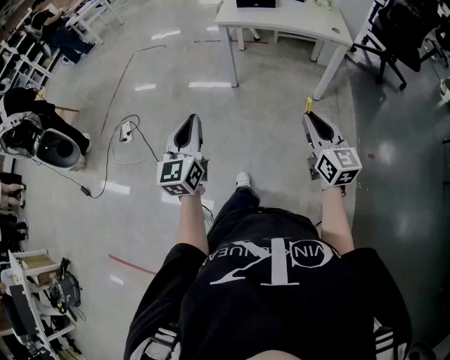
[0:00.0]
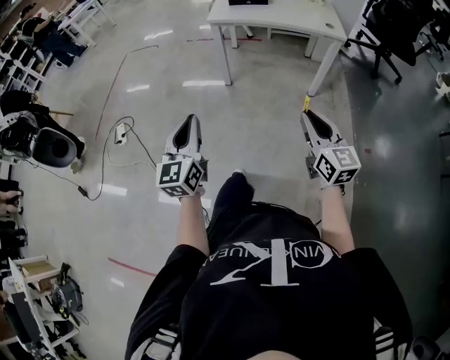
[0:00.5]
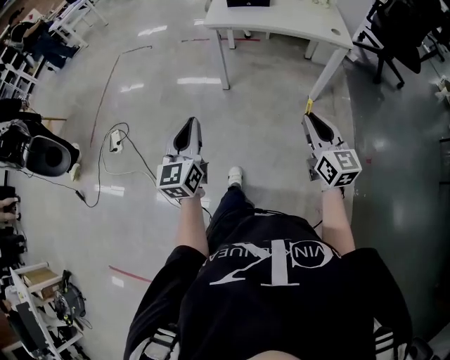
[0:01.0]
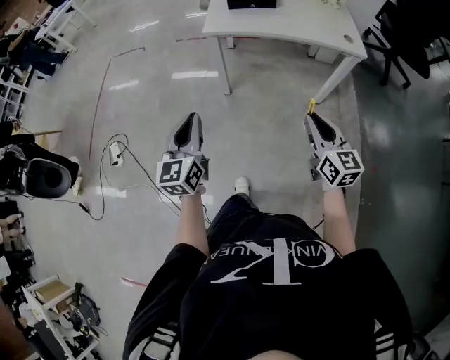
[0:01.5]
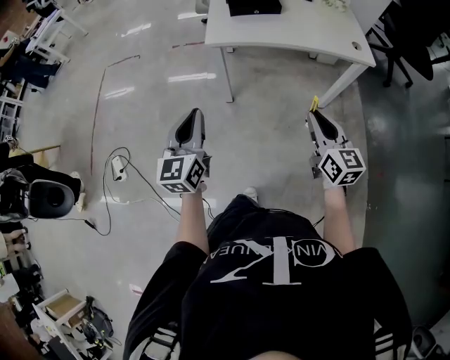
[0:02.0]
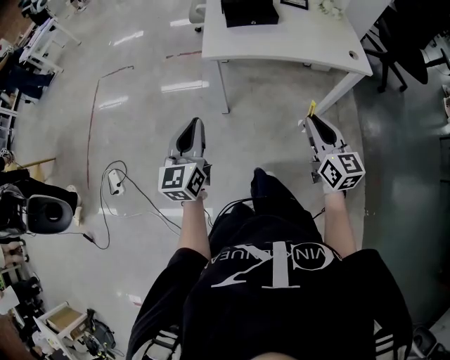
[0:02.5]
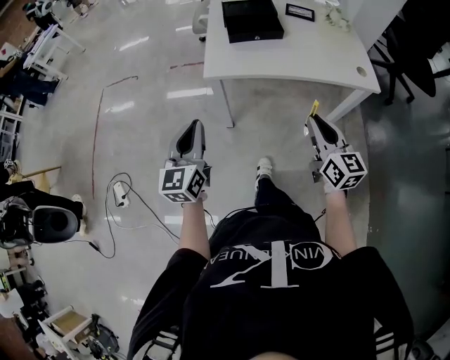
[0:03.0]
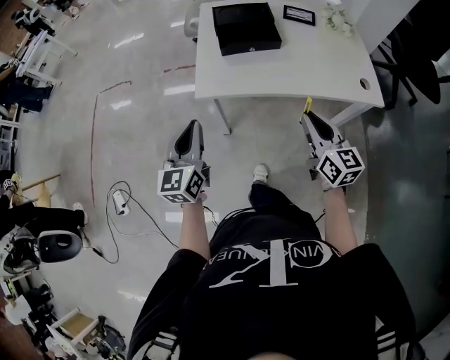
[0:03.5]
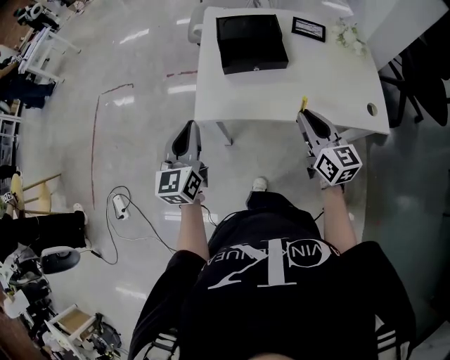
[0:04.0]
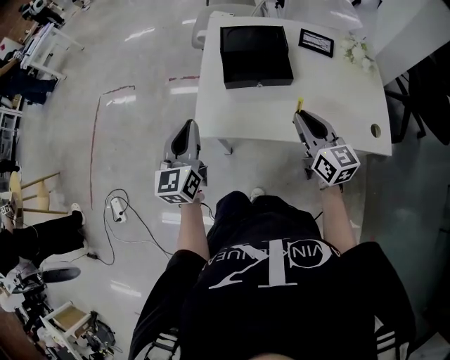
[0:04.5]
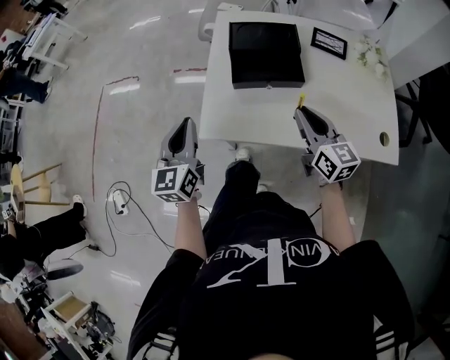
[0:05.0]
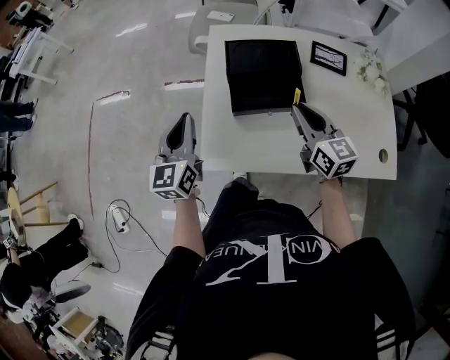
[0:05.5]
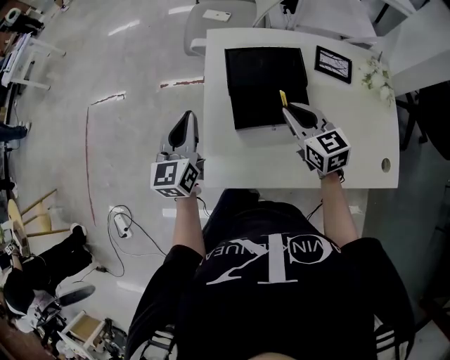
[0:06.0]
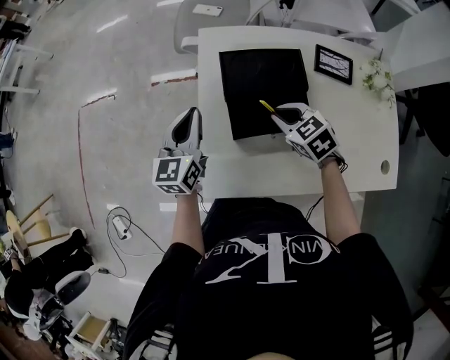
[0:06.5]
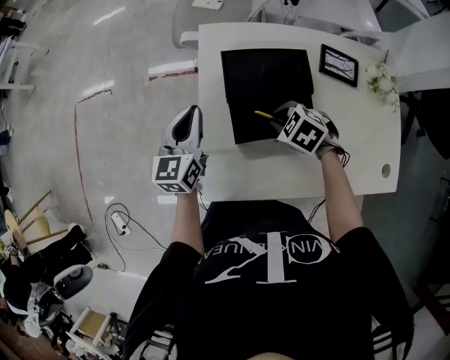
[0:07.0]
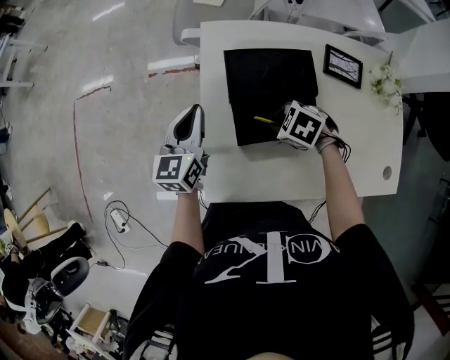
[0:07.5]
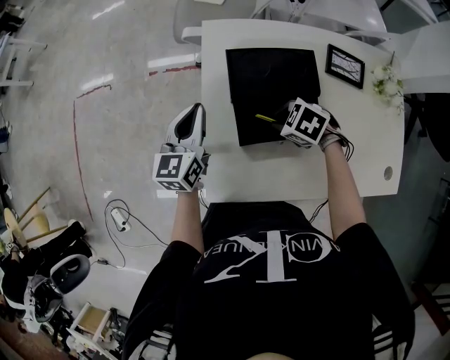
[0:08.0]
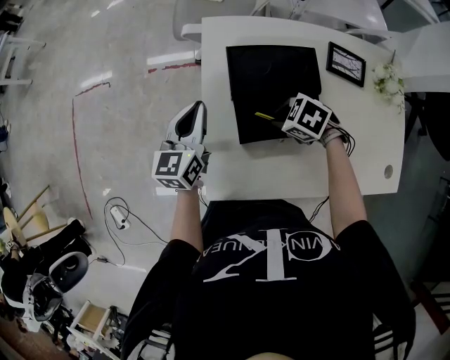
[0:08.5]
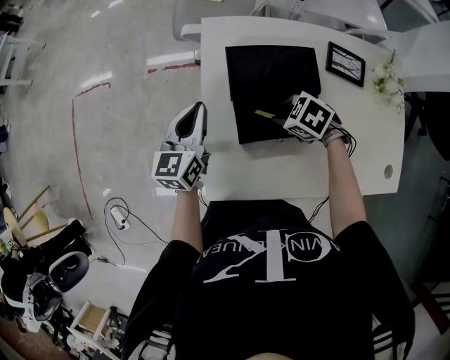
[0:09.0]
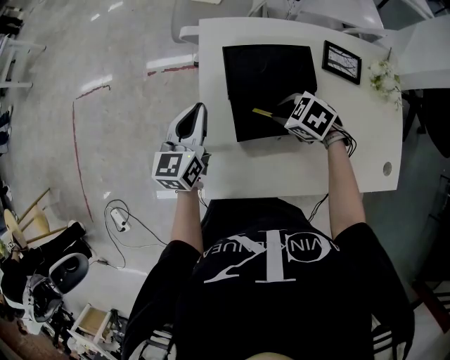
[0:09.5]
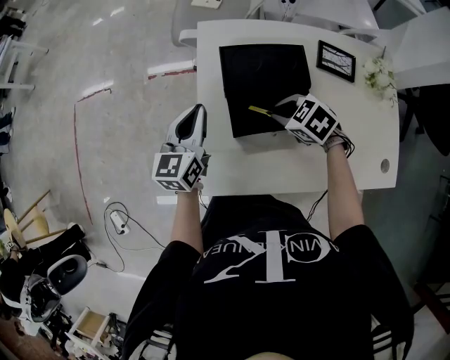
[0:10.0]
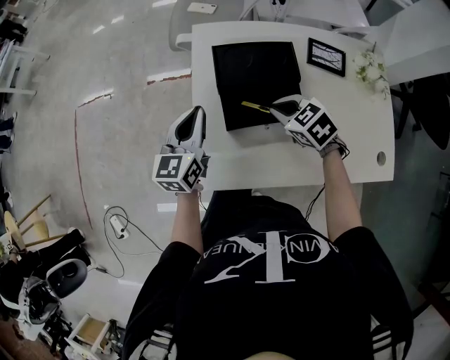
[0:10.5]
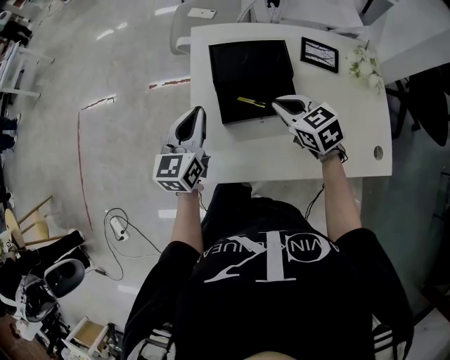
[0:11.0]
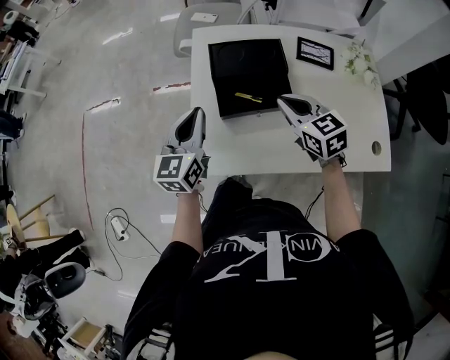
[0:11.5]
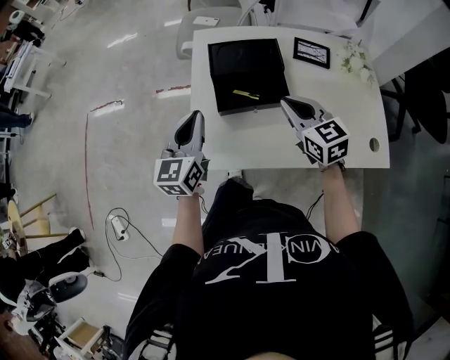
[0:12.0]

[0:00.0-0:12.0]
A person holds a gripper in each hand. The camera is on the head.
0:00.0 to 0:02.0: Both grippers move forward, some 35 cm.
0:02.0 to 0:04.0: The two grippers go some 35 cm forward.
0:04.0 to 0:06.0: Both grippers travel together forward, roughly 25 cm. The right gripper changes its angle by some 20 degrees.
0:06.0 to 0:08.0: The left gripper changes place by about 10 cm; the right gripper is displaced downward by roughly 10 cm, and angles its fingers downward, by some 40 degrees.
0:08.0 to 0:10.0: The grippers move only a little.
0:10.0 to 0:12.0: The right gripper shifts some 15 cm upward, backward and to the right, and points its fingers approximately 40 degrees further upward. The left gripper travels backward and upward by some 15 cm.

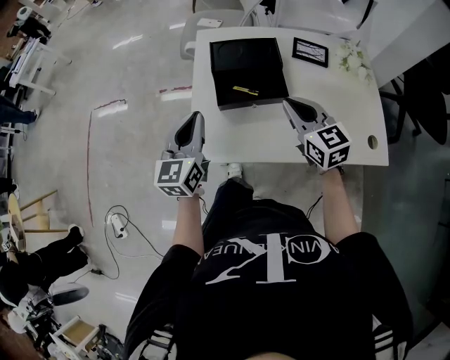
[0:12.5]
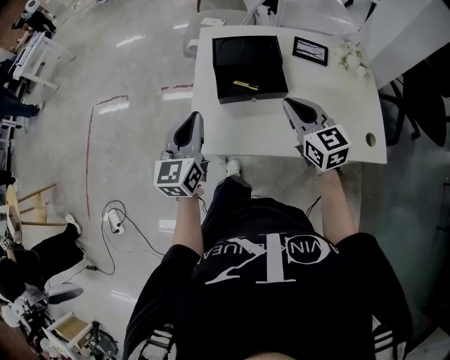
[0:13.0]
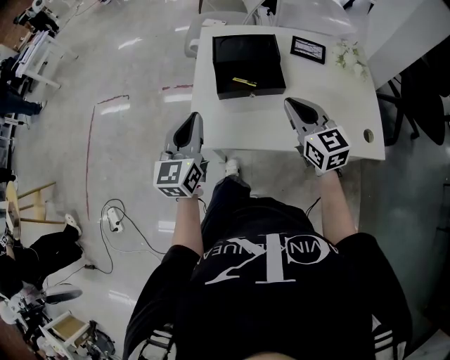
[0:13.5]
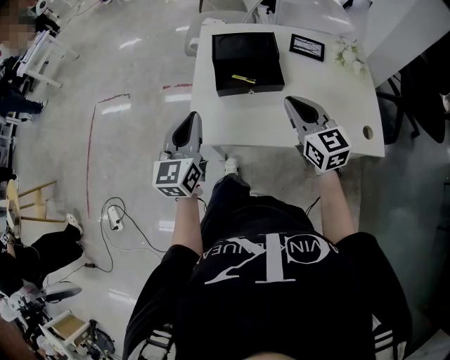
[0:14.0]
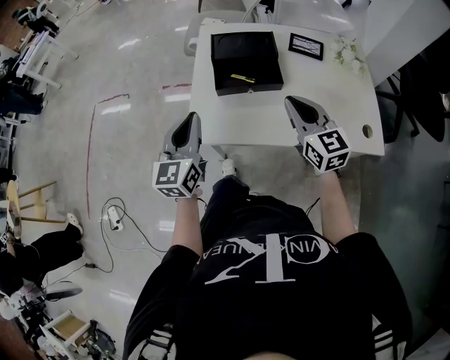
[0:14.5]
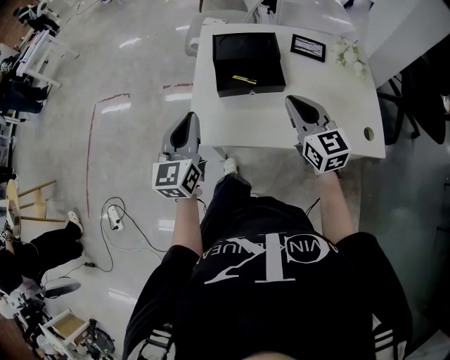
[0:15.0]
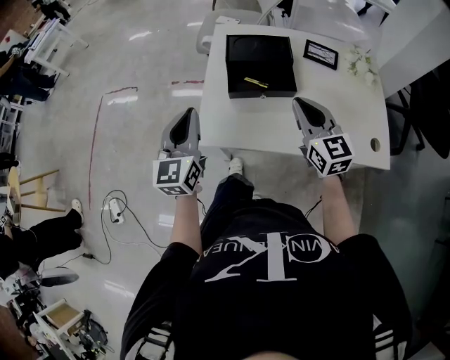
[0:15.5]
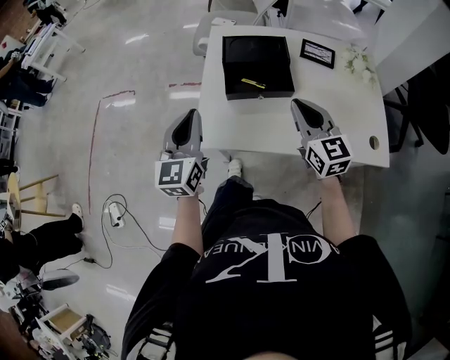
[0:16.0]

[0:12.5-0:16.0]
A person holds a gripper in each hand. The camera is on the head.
0:12.5 to 0:14.5: Both grippers move backward, roughly 5 cm.
0:14.5 to 0:16.0: There are only small adjustments of the grippers.

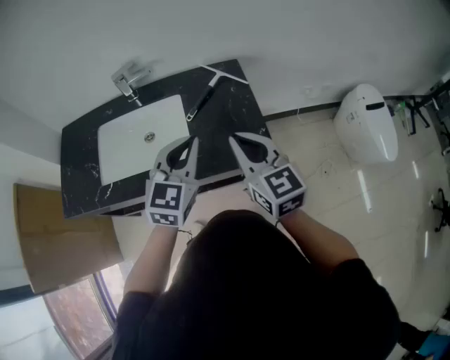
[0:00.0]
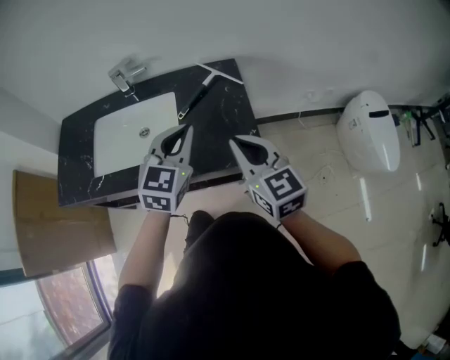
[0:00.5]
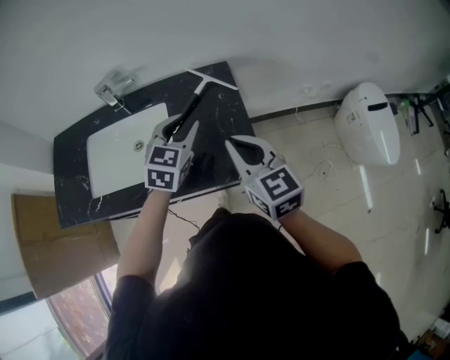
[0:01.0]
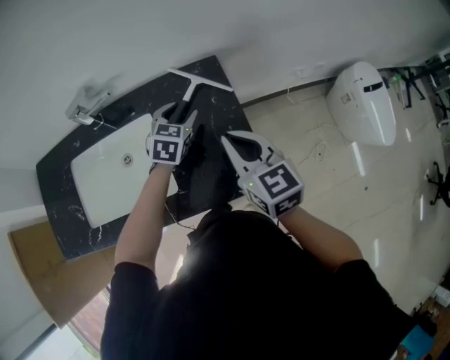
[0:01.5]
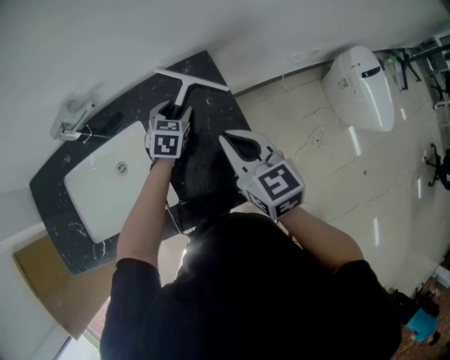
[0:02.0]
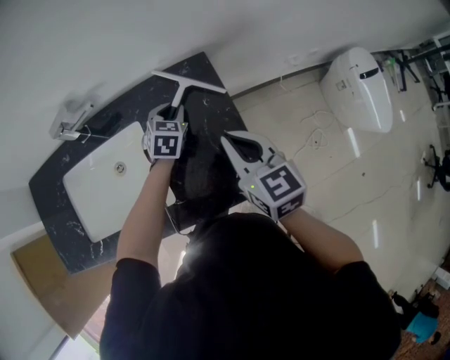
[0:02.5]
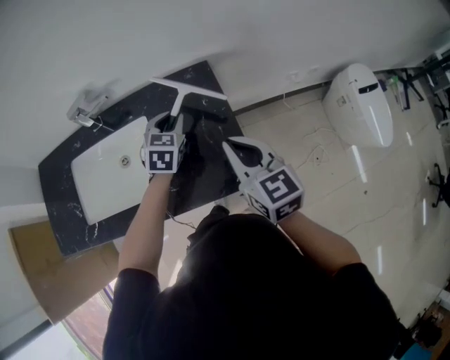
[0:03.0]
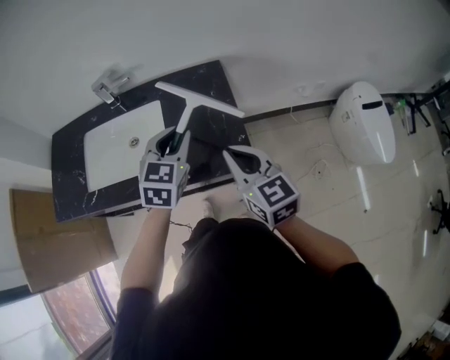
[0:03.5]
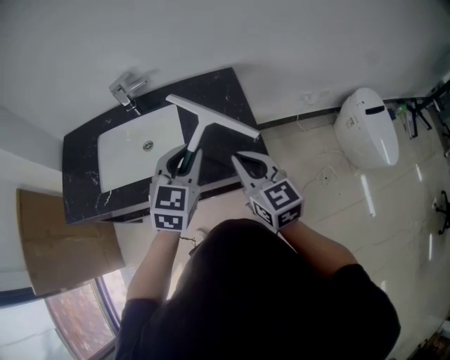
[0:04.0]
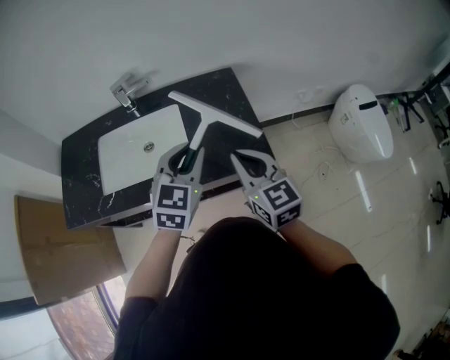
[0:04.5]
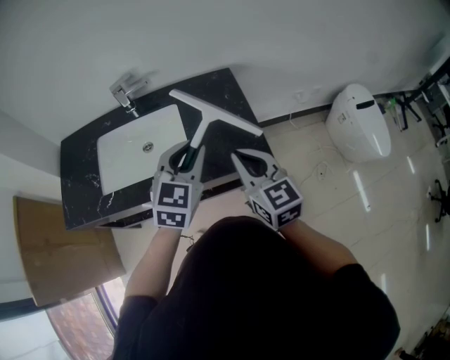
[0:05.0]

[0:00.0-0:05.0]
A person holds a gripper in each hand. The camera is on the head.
0:00.0 to 0:02.5: The right gripper travels forward and downward by some 20 cm, while the left gripper travels forward and downward by approximately 40 cm, changes its angle by some 30 degrees, and opens up.
0:02.5 to 0:05.0: The left gripper heads backward and upward, covering about 40 cm, and changes its angle by roughly 20 degrees, while the right gripper moves backward, about 20 cm.

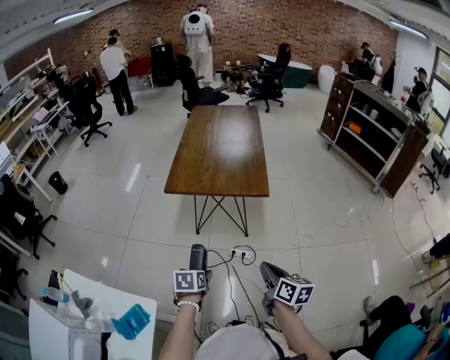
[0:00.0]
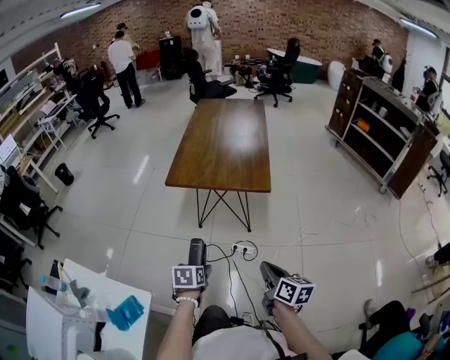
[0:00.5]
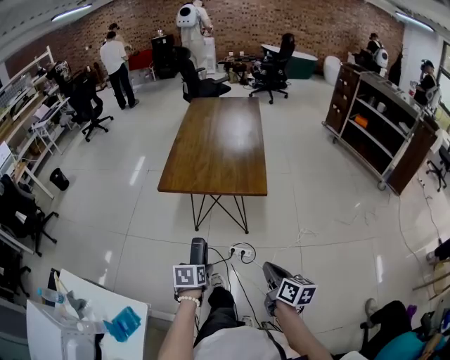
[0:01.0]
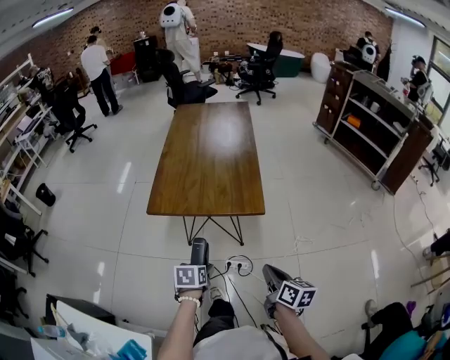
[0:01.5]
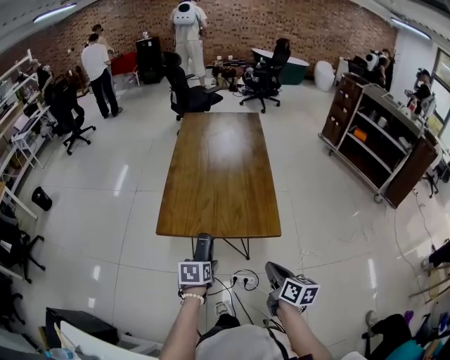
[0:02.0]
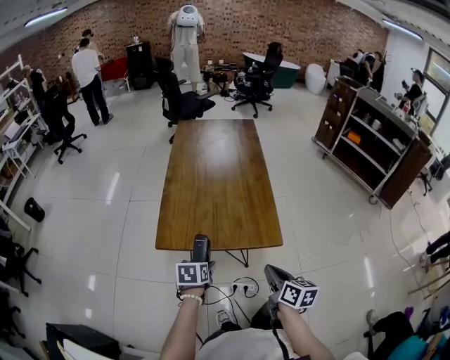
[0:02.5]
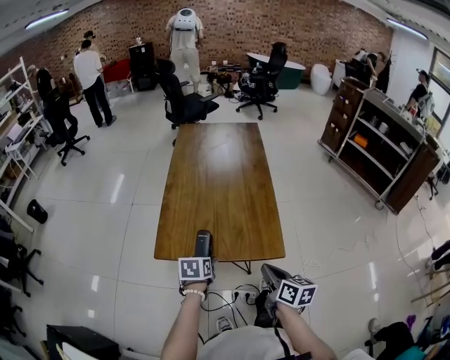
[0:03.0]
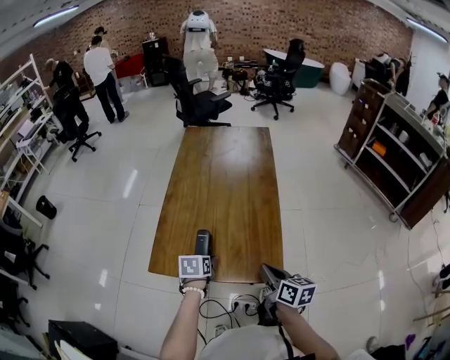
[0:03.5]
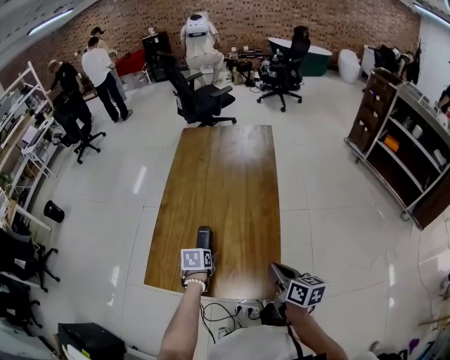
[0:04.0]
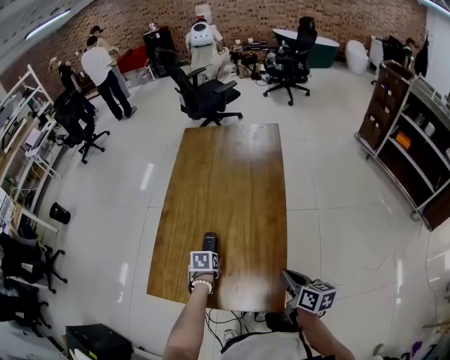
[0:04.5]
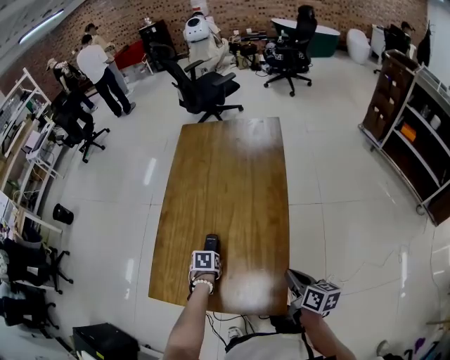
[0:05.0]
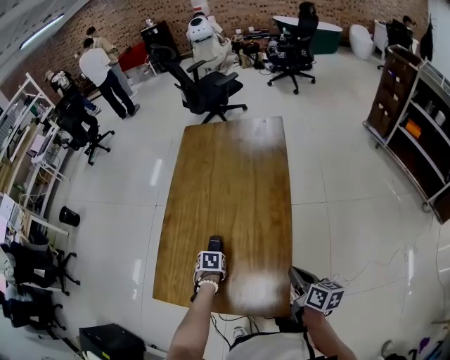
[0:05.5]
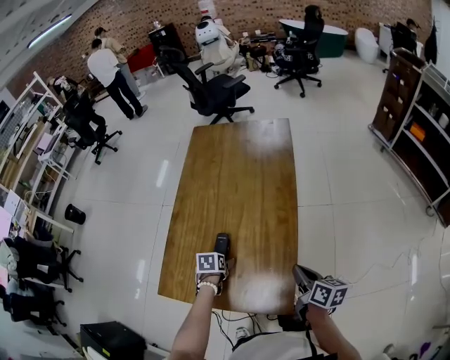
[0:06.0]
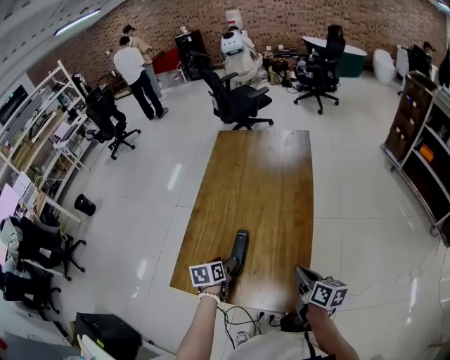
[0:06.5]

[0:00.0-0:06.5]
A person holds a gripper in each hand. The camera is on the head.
0:00.0 to 0:02.0: The grippers both shift forward by some 25 cm.
0:02.0 to 0:04.5: Both grippers travel together forward, approximately 30 cm.
0:04.5 to 0:06.5: The left gripper moves upward, approximately 10 cm, and rotates some 30 degrees.
